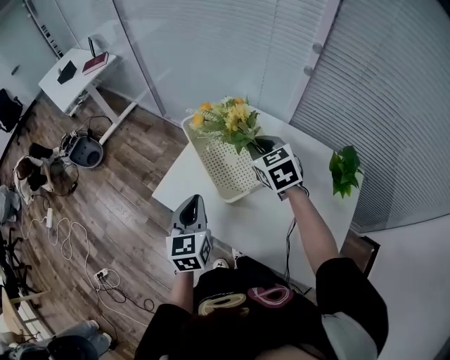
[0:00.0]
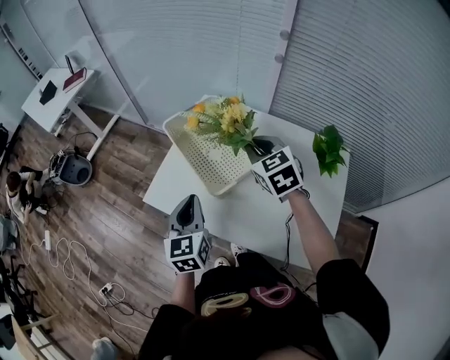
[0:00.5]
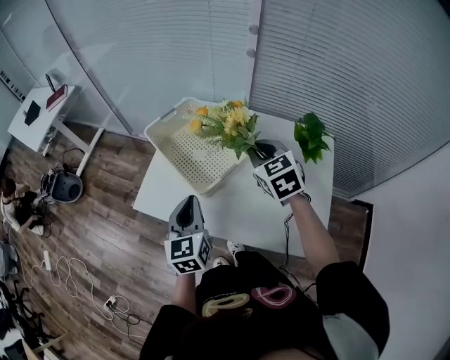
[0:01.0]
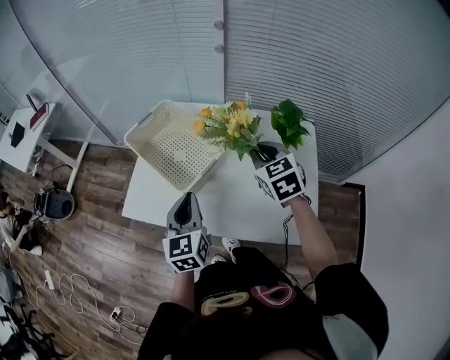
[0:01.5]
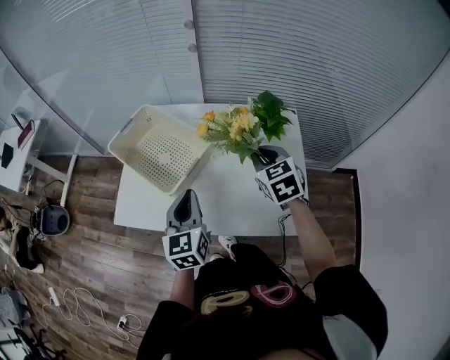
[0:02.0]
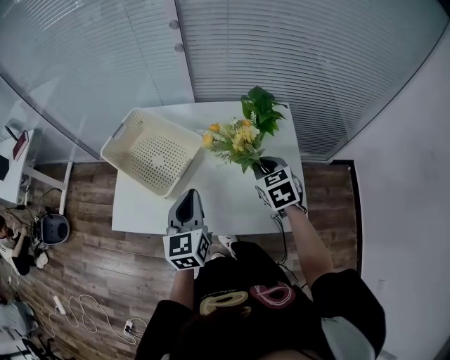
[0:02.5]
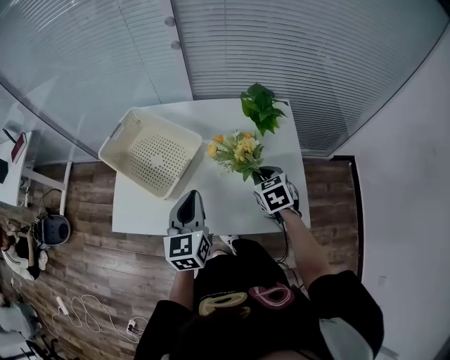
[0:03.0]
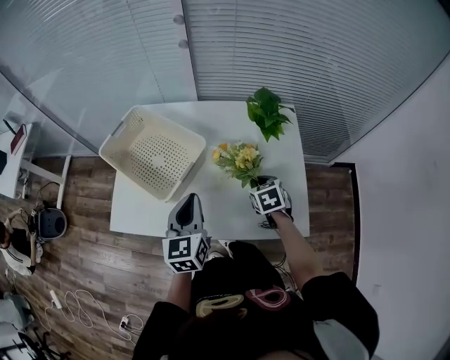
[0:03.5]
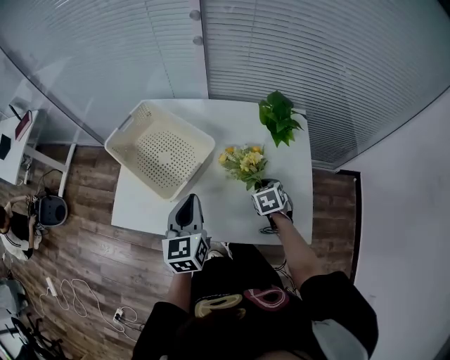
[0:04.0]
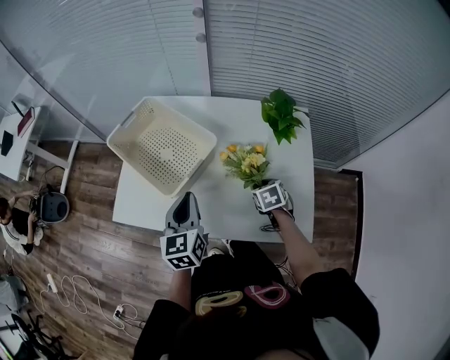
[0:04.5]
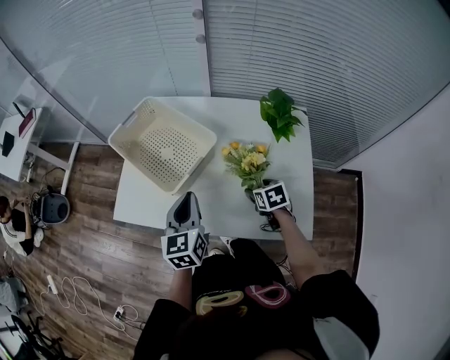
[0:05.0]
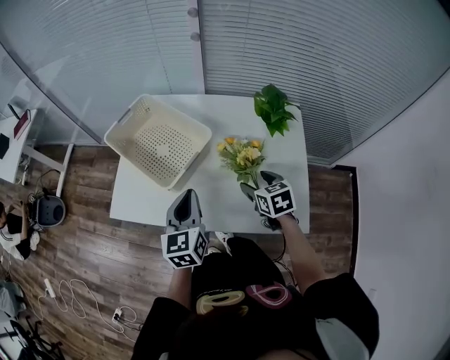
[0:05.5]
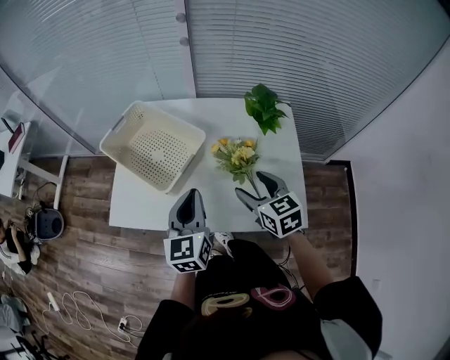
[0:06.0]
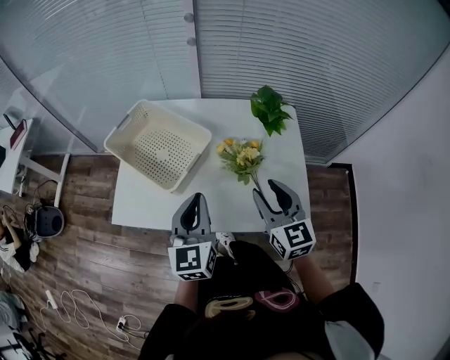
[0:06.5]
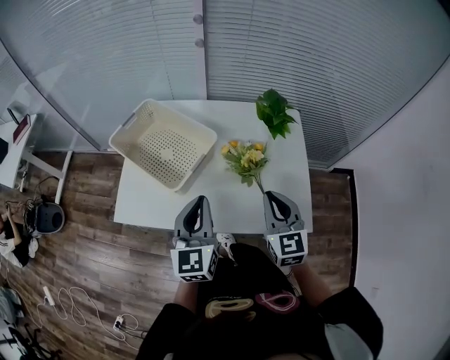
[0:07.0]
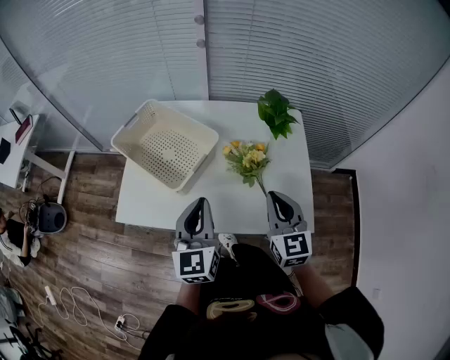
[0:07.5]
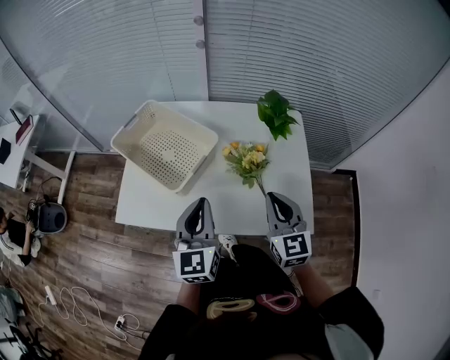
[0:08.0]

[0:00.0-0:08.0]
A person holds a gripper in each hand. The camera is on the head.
0:00.0 to 0:02.0: The right gripper ends up roughly 30 cm from where it was, and changes its angle by approximately 30 degrees; the left gripper shifts by approximately 15 cm, and rotates roughly 20 degrees.
0:02.0 to 0:04.0: The right gripper shifts about 20 cm downward, and rotates approximately 30 degrees.
0:04.0 to 0:06.0: The left gripper ends up roughly 5 cm from where it was; the right gripper travels upward, backward and to the left by some 20 cm, rotates about 30 degrees, and opens up.
0:06.0 to 0:08.0: The right gripper shifts by about 5 cm, changes its angle by about 20 degrees, and closes up.

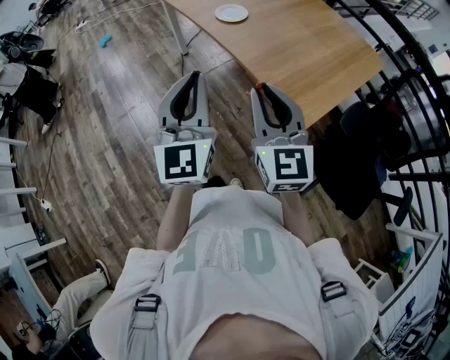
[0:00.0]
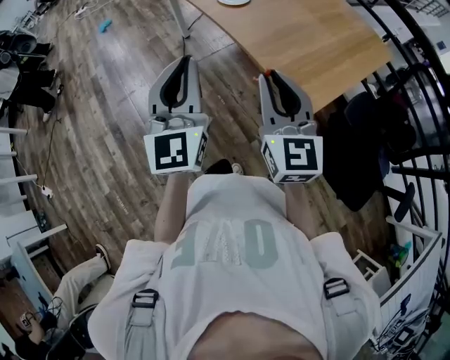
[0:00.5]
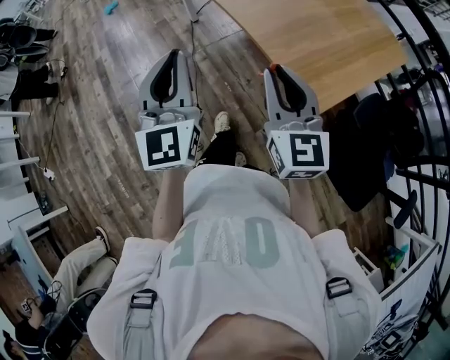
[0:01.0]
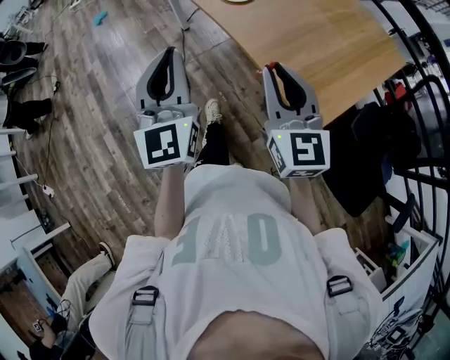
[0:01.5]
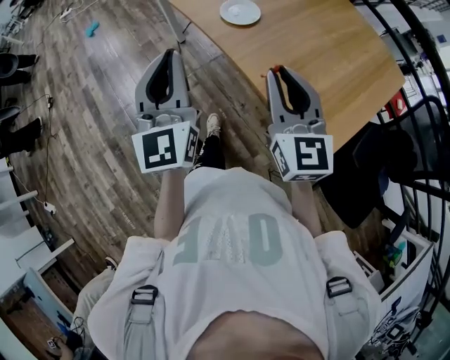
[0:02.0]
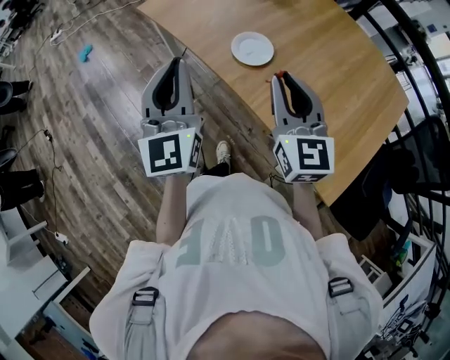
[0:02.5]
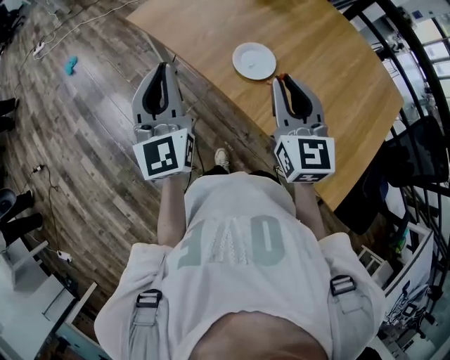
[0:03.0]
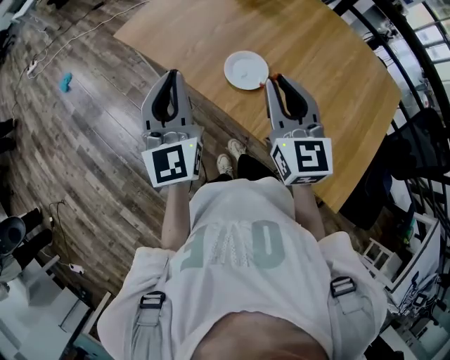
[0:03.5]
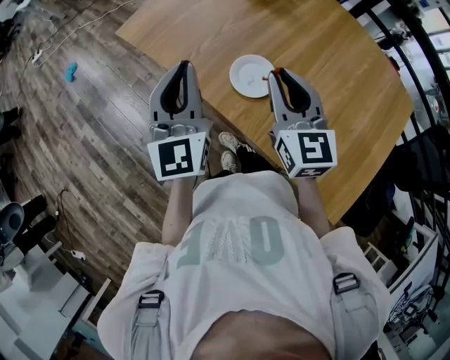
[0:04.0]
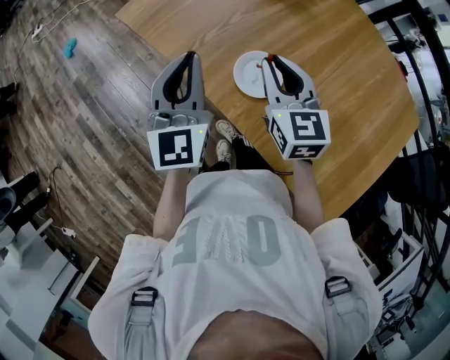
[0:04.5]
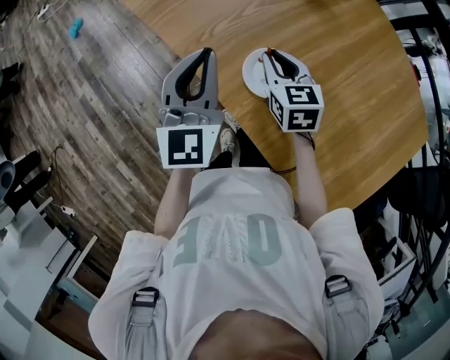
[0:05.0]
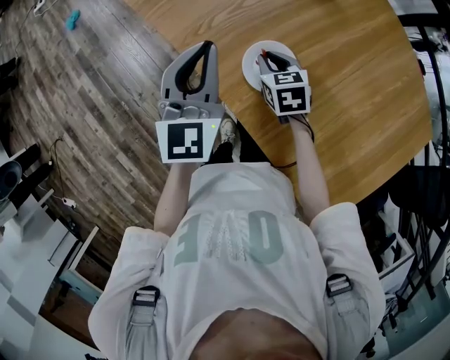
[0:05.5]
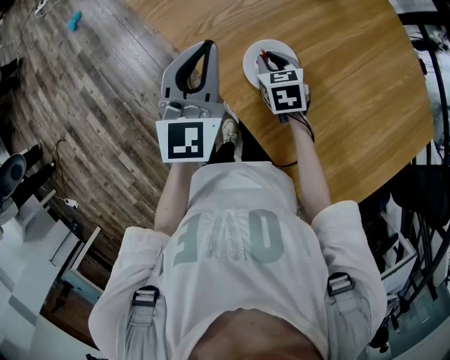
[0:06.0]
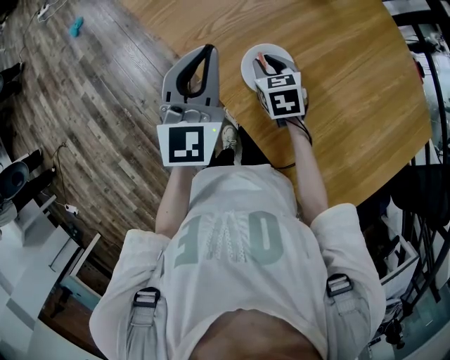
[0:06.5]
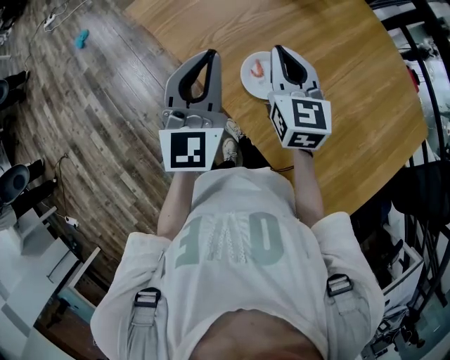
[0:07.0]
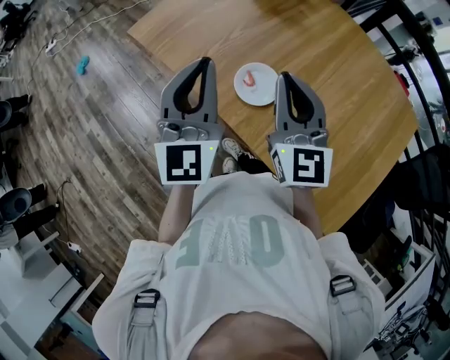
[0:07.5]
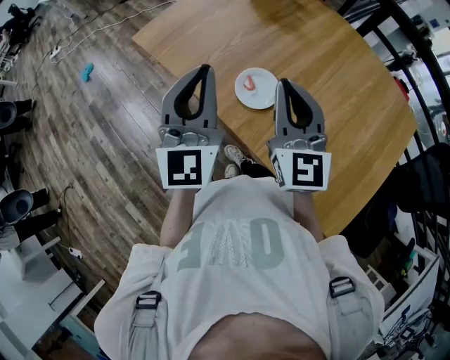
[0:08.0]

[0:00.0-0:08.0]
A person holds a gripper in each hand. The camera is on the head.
0:00.0 to 0:02.0: The grippers both shift forward by about 20 cm.
0:02.0 to 0:04.0: The two grippers go some 30 cm forward.
0:04.0 to 0:06.0: The right gripper travels downward and forward by about 25 cm, and tips its fingers downward by some 40 degrees, while the left gripper is displaced downward and forward by about 10 cm.
0:06.0 to 0:08.0: The left gripper goes roughly 15 cm upward and backward. Meanwhile the right gripper is displaced upward and backward by roughly 30 cm, and tips its fingers upward by about 50 degrees.

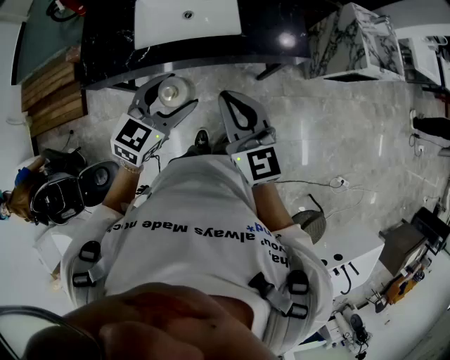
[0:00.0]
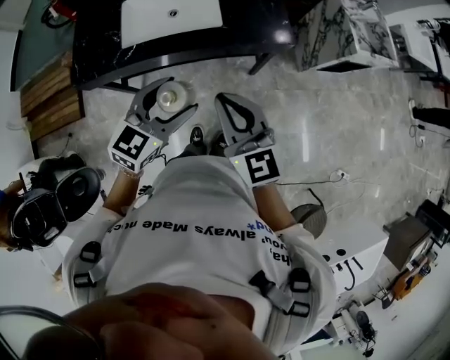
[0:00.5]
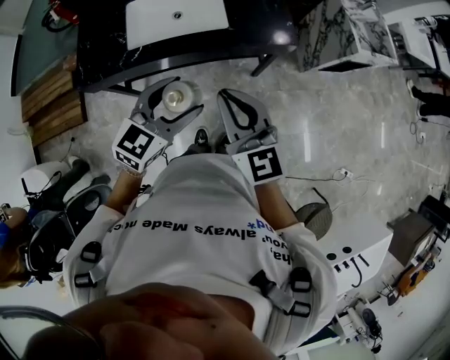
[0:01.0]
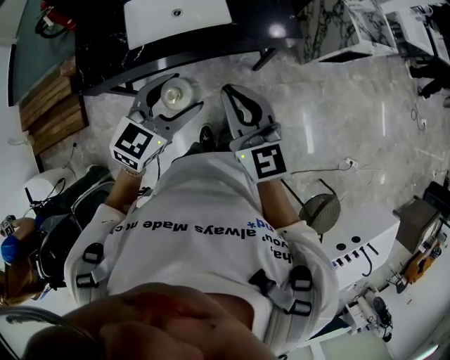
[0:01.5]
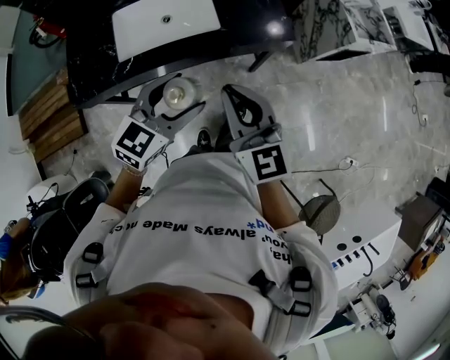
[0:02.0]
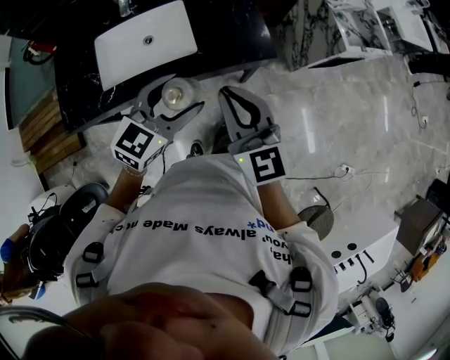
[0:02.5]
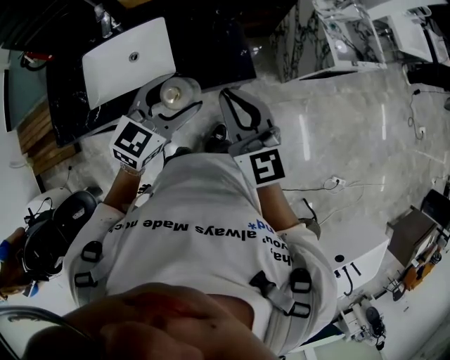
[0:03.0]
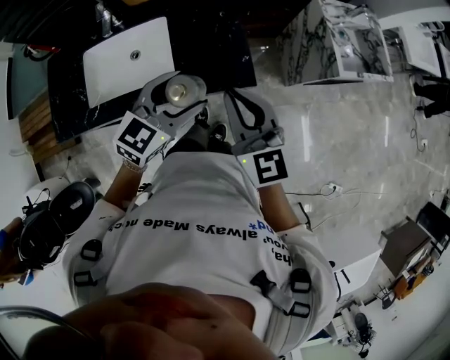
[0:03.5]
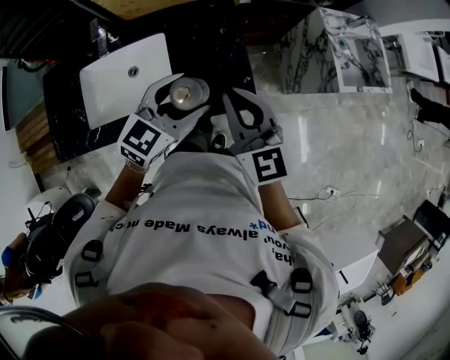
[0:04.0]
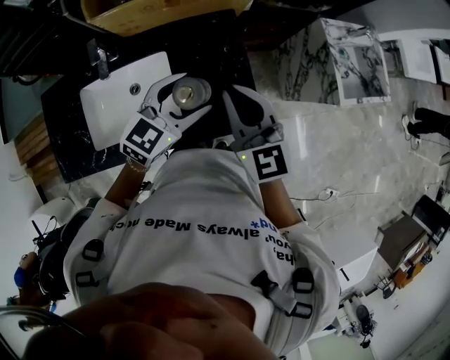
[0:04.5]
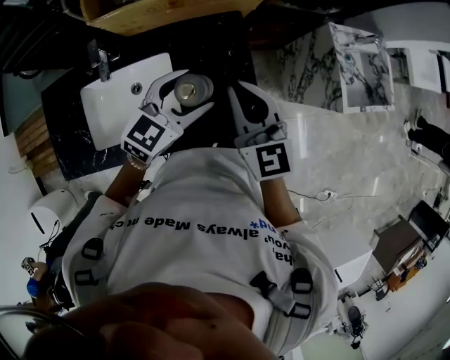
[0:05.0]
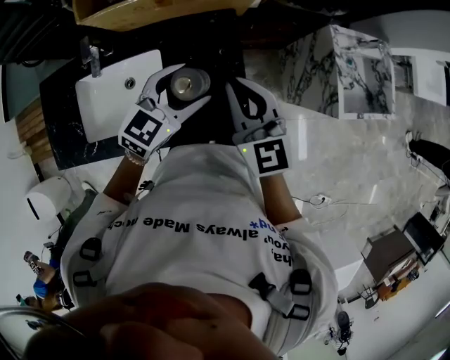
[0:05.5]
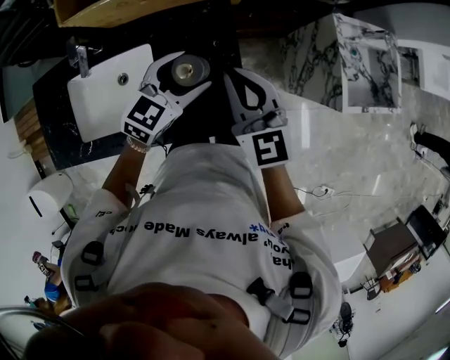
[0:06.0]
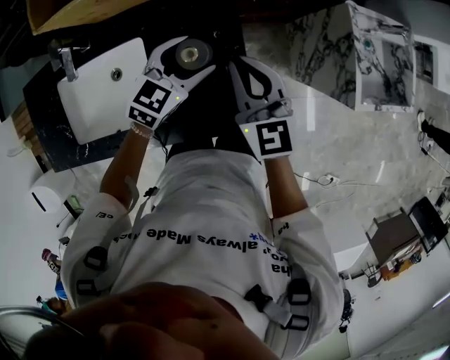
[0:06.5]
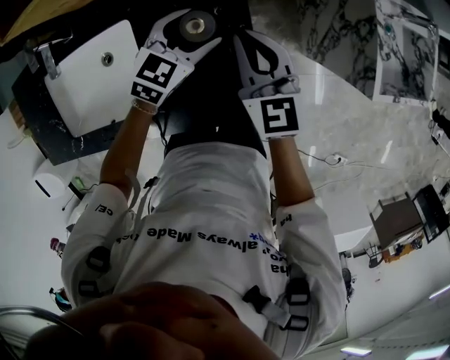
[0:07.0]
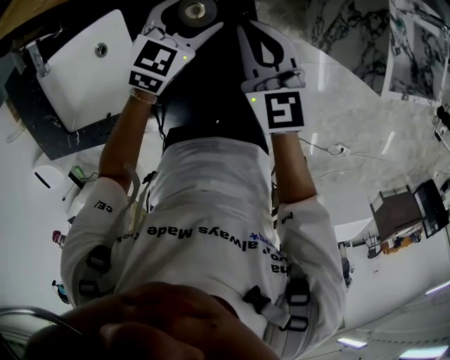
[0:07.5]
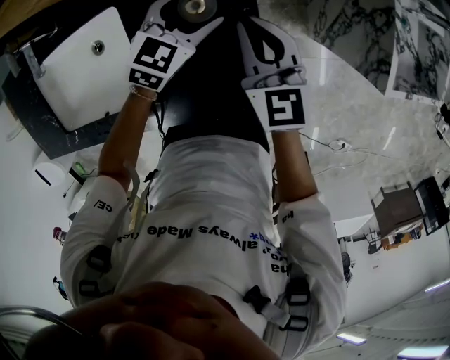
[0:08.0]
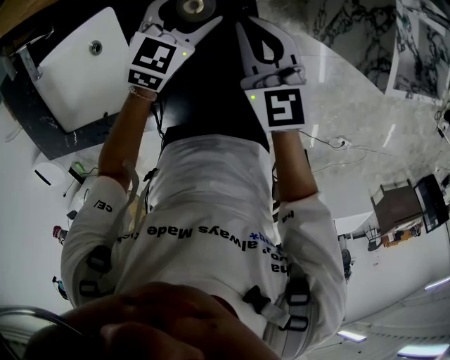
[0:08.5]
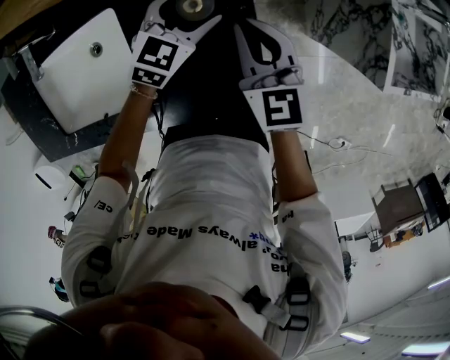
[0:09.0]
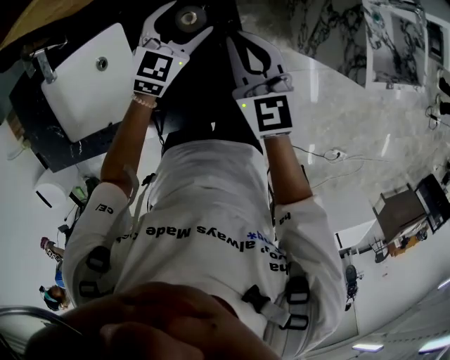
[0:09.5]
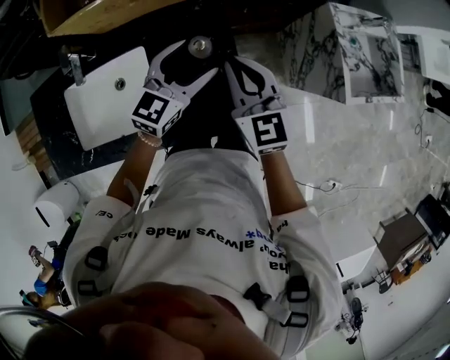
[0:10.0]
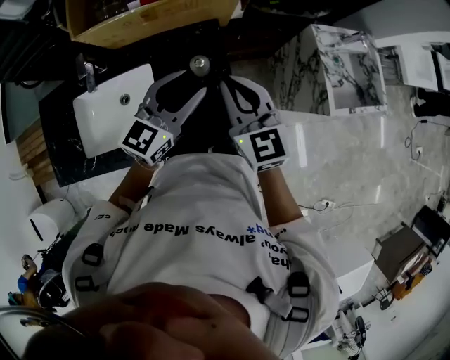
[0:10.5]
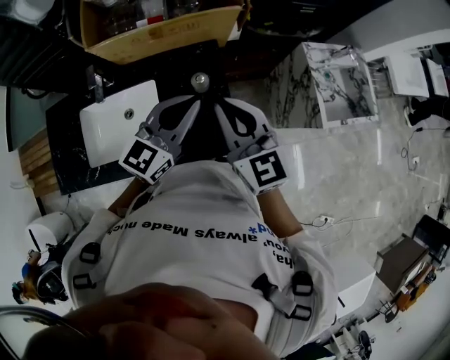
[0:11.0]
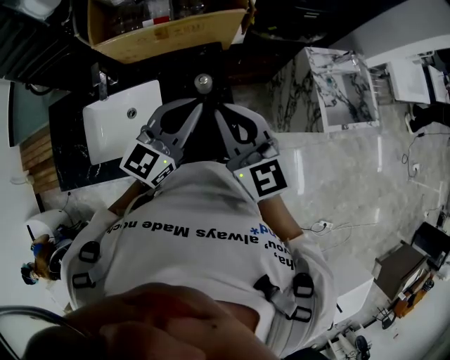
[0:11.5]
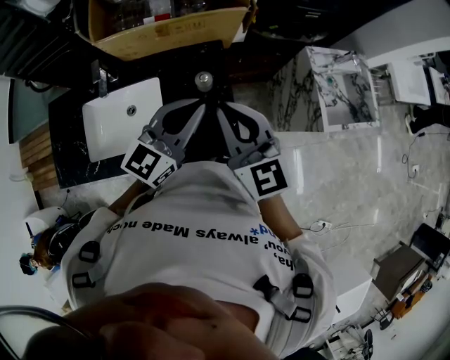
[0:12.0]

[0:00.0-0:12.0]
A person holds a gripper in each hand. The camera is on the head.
0:00.0 to 0:02.0: The right gripper goes left and right, about 5 cm each way, reversing 2 times. Meanwhile the left gripper swings left and right, approximately 5 cm each way, with 2 reversals.
0:02.0 to 0:04.0: Both grippers move forward and to the right, about 35 cm.
0:04.0 to 0:06.0: The left gripper moves forward and downward, approximately 20 cm. Meanwhile the right gripper is displaced forward by roughly 15 cm.
0:06.0 to 0:08.0: Both grippers move downward, approximately 20 cm.
0:08.0 to 0:10.0: The grippers both shift upward by approximately 20 cm.
0:10.0 to 0:12.0: Both grippers move upward and backward, about 20 cm. The left gripper closes.
